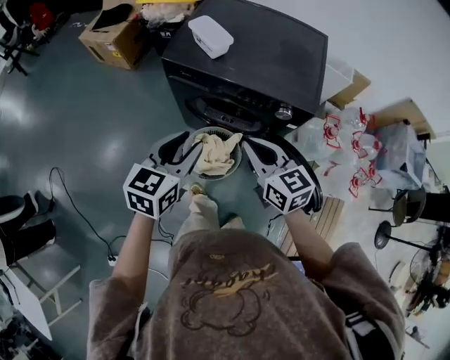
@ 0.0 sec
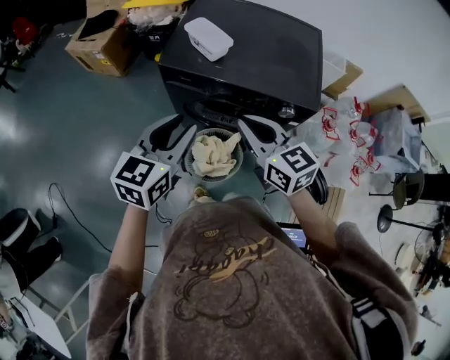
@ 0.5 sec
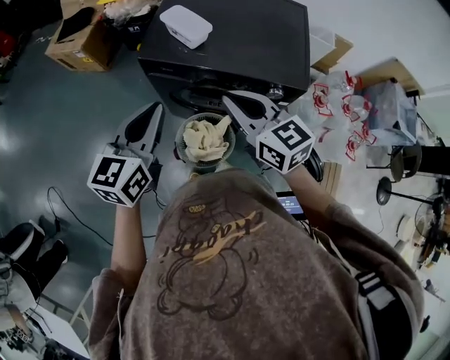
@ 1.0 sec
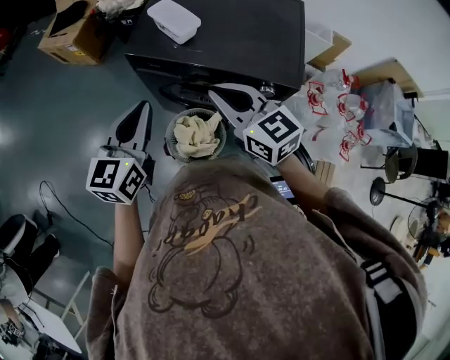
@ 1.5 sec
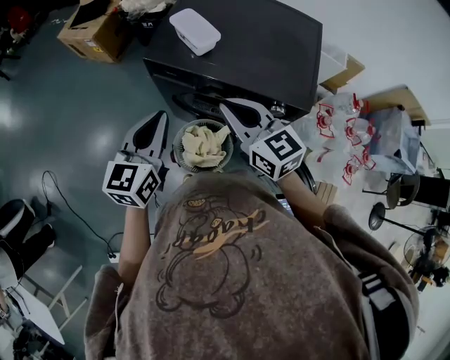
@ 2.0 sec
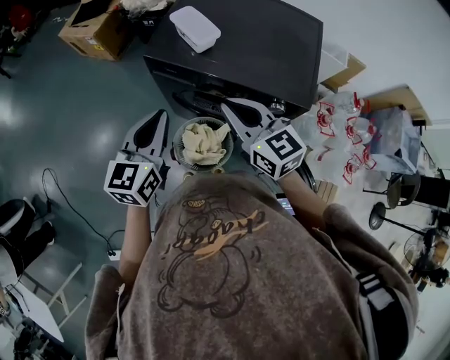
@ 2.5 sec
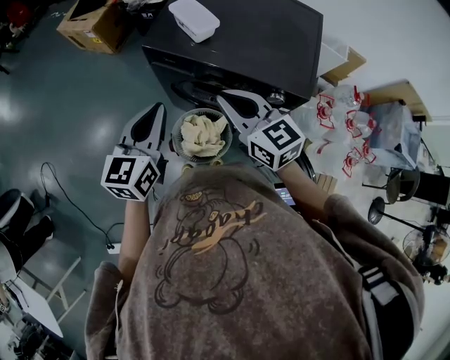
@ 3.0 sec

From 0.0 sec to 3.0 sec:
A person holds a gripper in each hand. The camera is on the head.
From 0.0 sec to 1.5 sec: Both grippers move forward, roughly 10 cm. The left gripper closes.
From 1.5 sec to 3.0 sec: The grippers stay close to where they were, moving slightly.

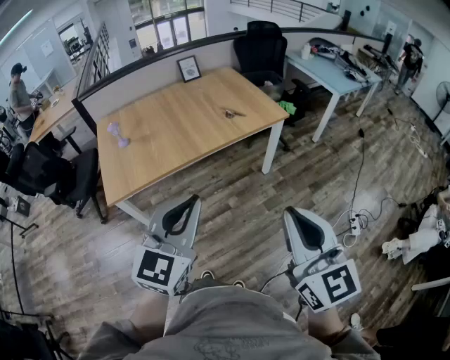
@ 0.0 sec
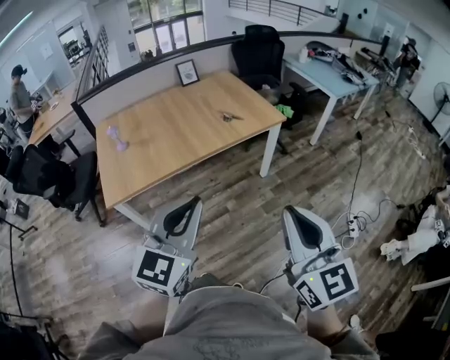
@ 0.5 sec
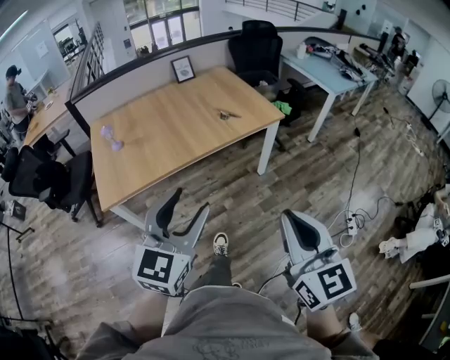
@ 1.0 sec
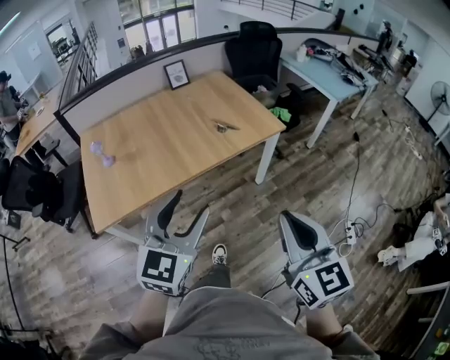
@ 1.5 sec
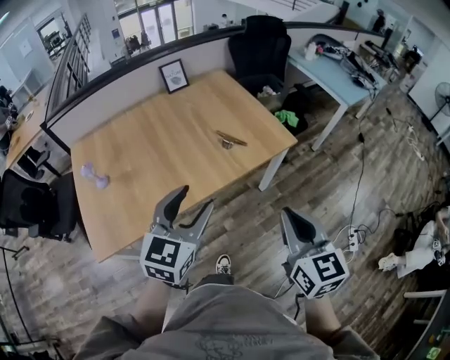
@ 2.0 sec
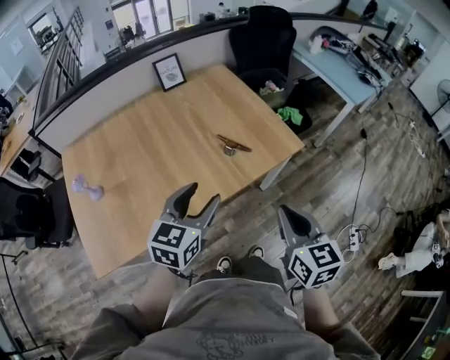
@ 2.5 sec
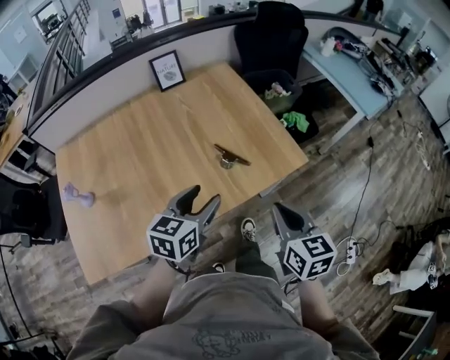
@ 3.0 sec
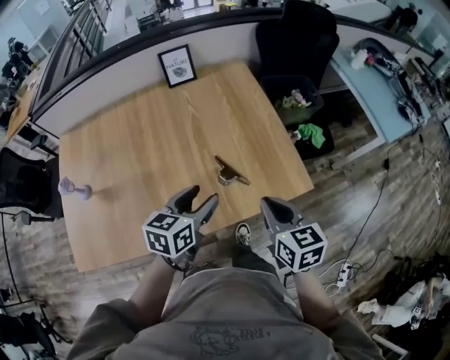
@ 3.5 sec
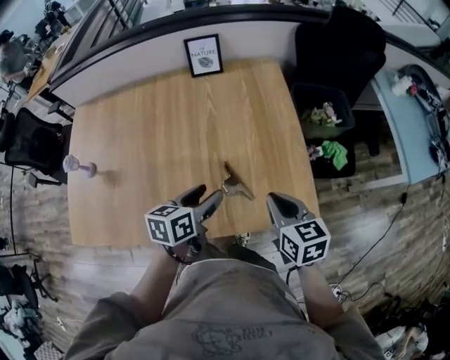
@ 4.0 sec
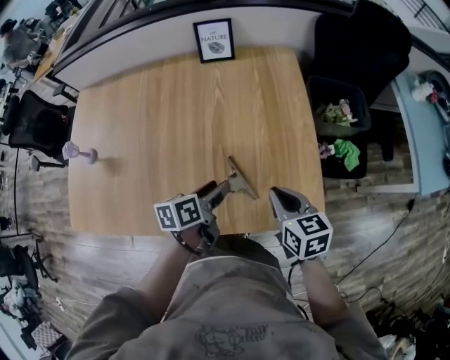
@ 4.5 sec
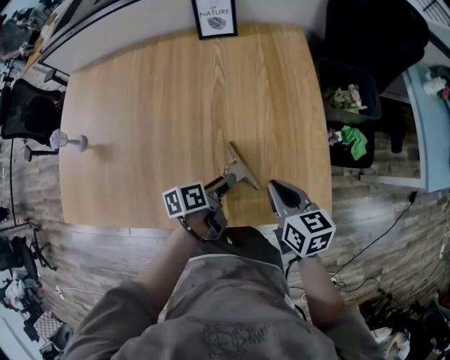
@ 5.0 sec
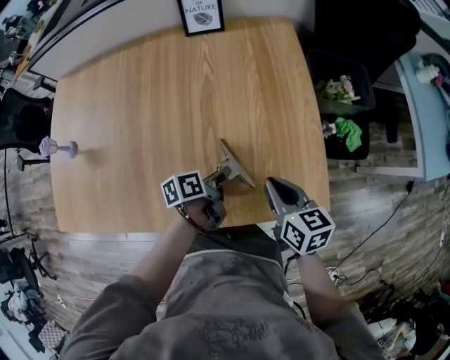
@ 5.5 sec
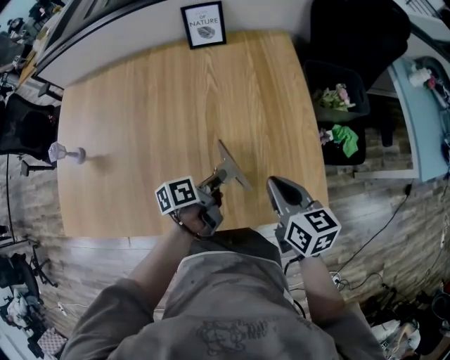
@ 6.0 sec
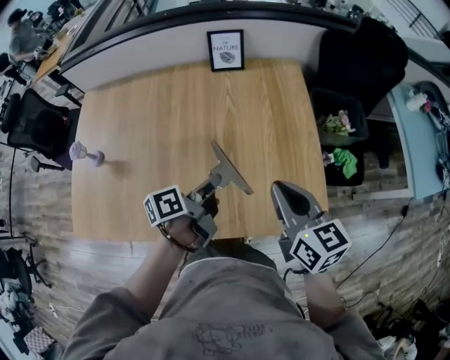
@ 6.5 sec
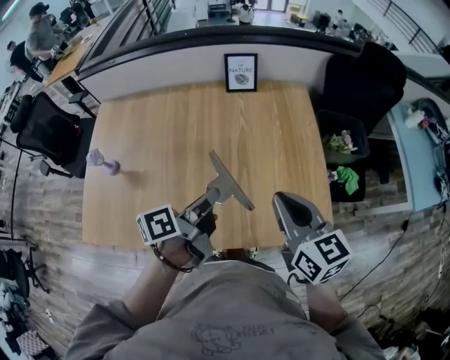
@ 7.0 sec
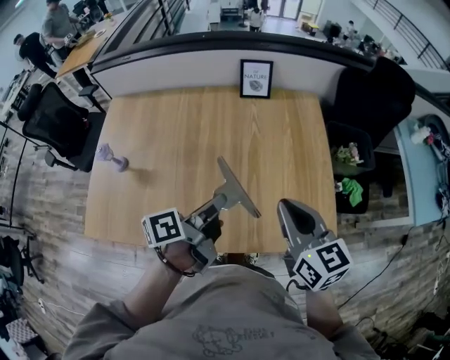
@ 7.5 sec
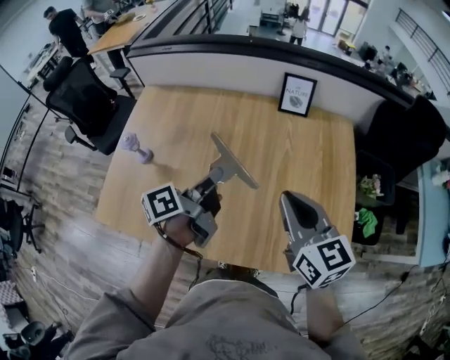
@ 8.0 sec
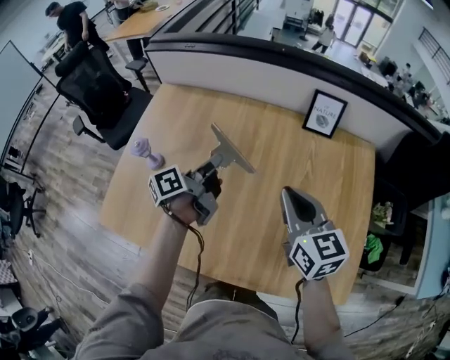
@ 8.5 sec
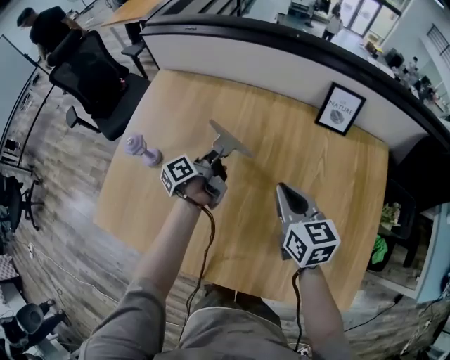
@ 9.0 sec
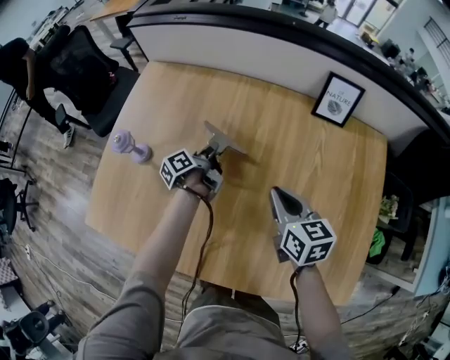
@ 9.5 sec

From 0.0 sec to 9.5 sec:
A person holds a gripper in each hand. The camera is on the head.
From 0.0 sec to 2.0 sec: Both grippers travel together forward, approximately 35 cm. The left gripper opens its fingers.
From 2.0 sec to 4.0 sec: The left gripper ends up some 40 cm from where it was, and rolls counterclockwise, seen from behind, by some 50 degrees. The right gripper ends up roughly 50 cm from where it was, and turns by some 40 degrees.
From 4.0 sec to 5.5 sec: The left gripper travels downward by roughly 20 cm, rotates about 40 degrees, and closes up; the right gripper is displaced downward by roughly 10 cm.
From 5.5 sec to 7.5 sec: The grippers both shift upward and to the left by some 30 cm. The left gripper changes its angle by some 20 degrees, while the right gripper changes its angle by approximately 20 degrees.
From 7.5 sec to 9.5 sec: The two grippers go about 40 cm forward, downward and to the left. The left gripper turns by roughly 30 degrees.

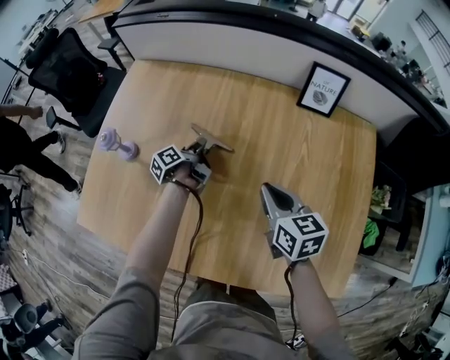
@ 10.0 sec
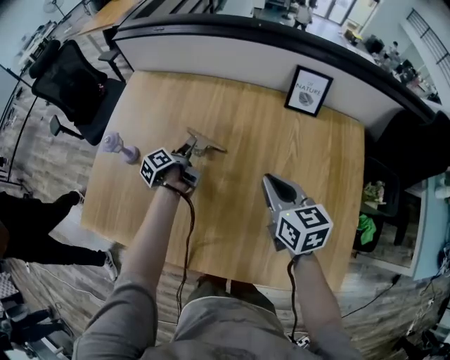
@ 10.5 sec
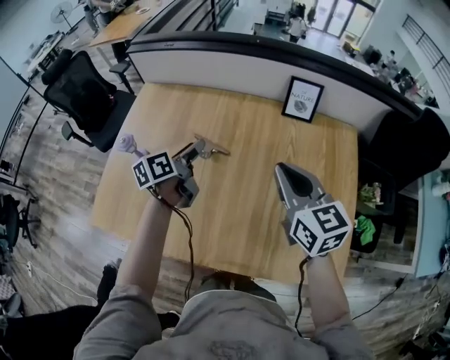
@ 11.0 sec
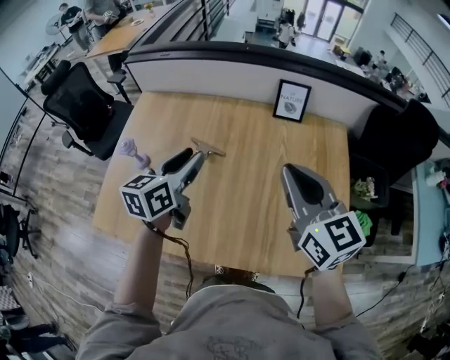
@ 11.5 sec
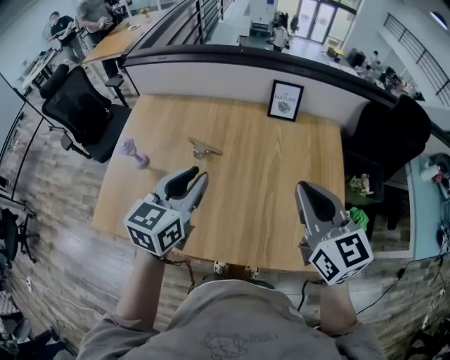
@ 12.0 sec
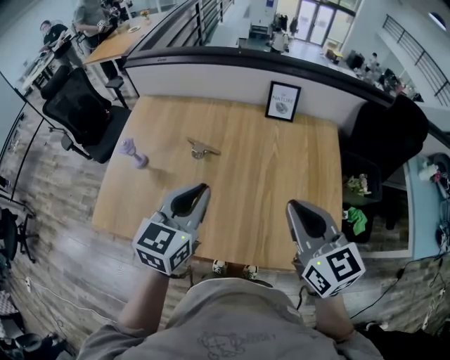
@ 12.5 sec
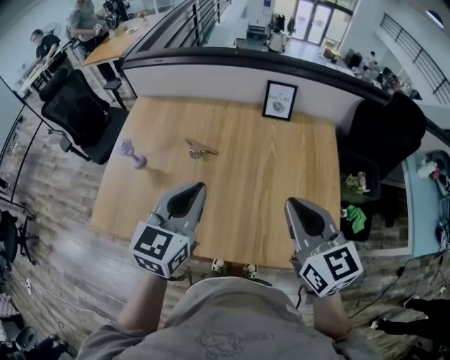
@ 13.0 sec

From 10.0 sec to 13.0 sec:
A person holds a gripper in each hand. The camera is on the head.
From 10.0 sec to 11.5 sec: The grippers both shift upward and backward by approximately 35 cm. The right gripper swivels some 30 degrees. Meanwhile the left gripper twists approximately 60 degrees clockwise, seen from behind, and opens.
From 11.5 sec to 13.0 sec: The right gripper goes approximately 10 cm backward, while the left gripper goes some 15 cm backward and to the right, rotates some 20 degrees, and closes up.

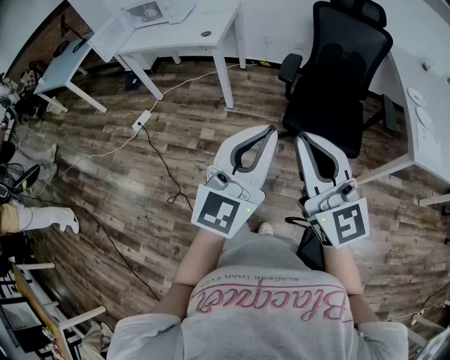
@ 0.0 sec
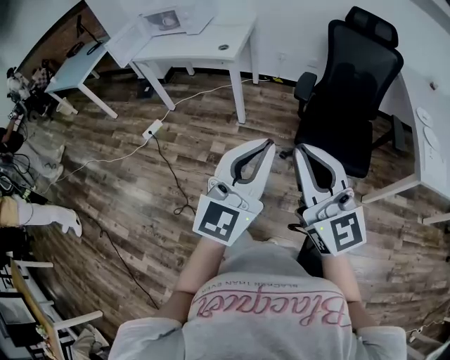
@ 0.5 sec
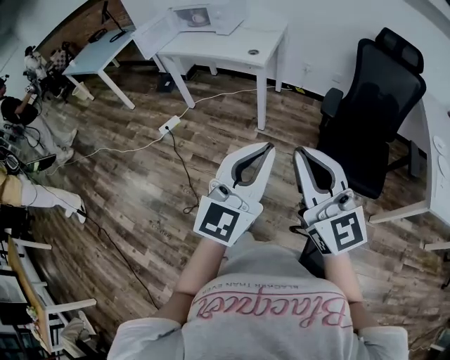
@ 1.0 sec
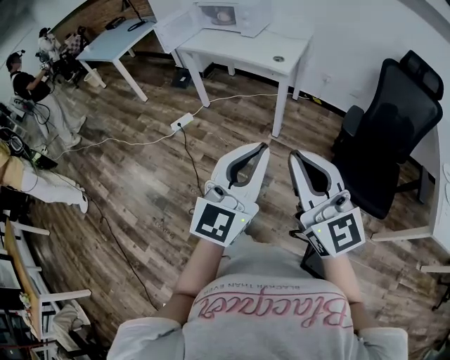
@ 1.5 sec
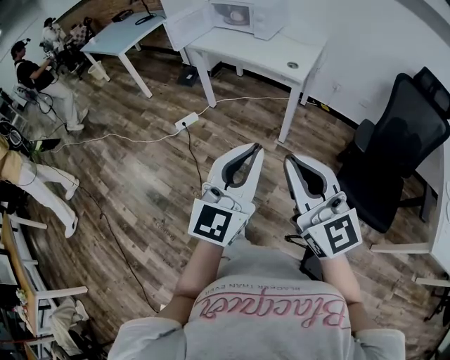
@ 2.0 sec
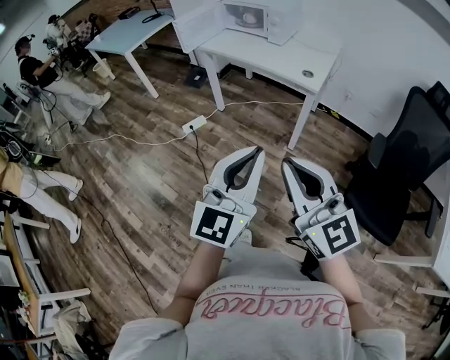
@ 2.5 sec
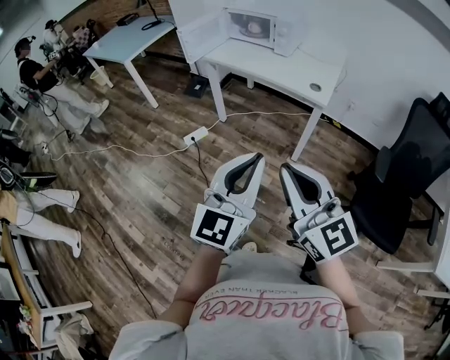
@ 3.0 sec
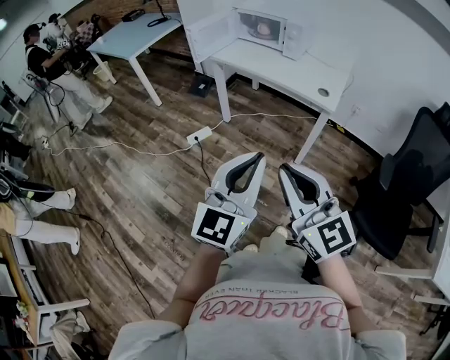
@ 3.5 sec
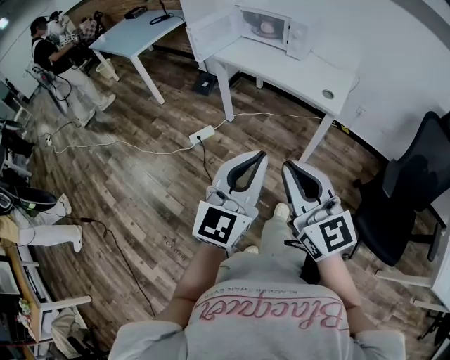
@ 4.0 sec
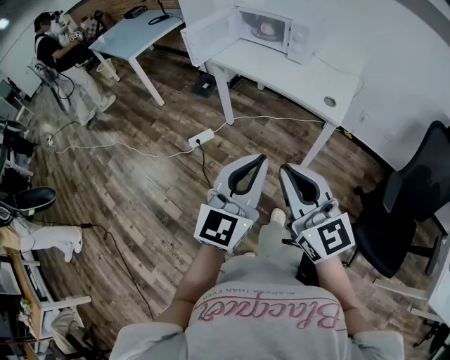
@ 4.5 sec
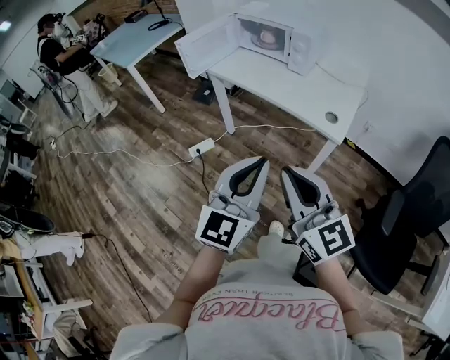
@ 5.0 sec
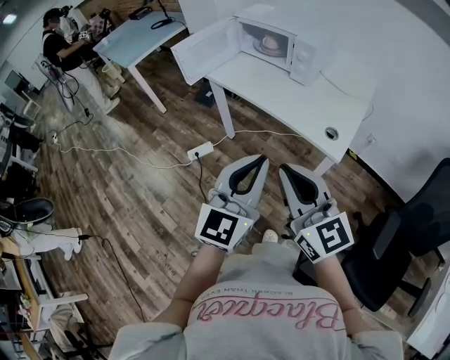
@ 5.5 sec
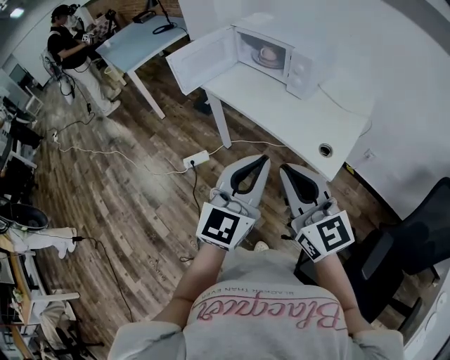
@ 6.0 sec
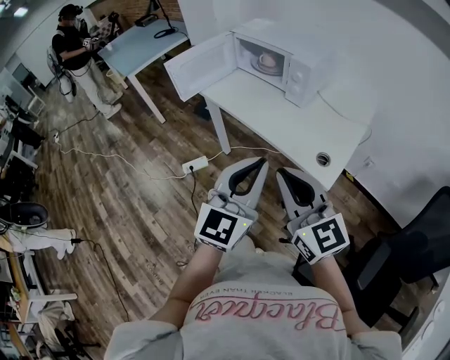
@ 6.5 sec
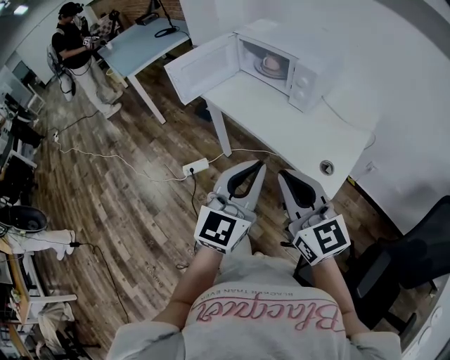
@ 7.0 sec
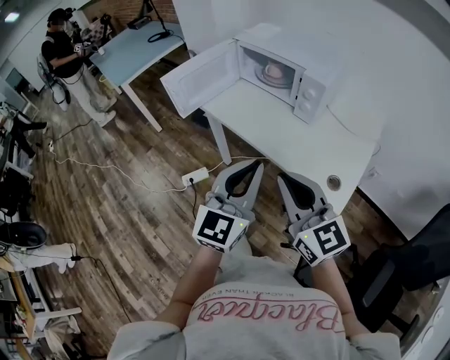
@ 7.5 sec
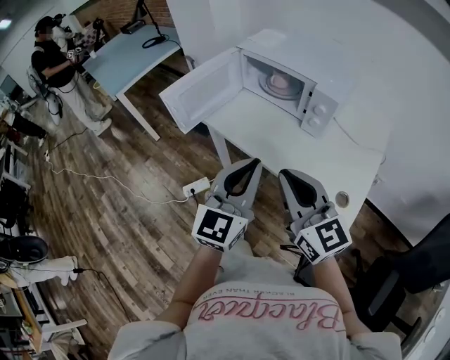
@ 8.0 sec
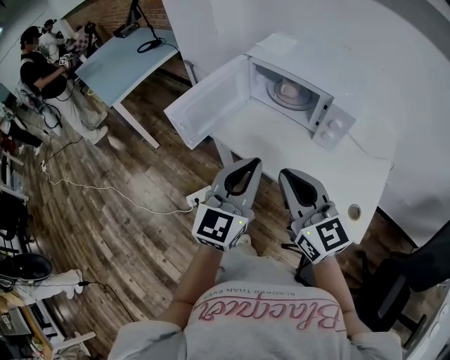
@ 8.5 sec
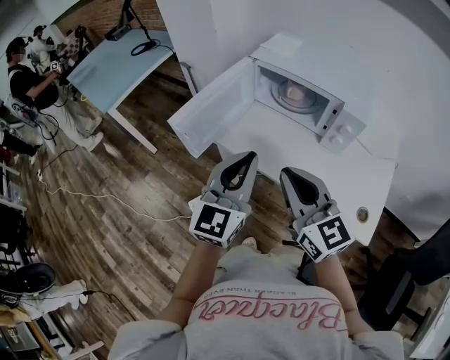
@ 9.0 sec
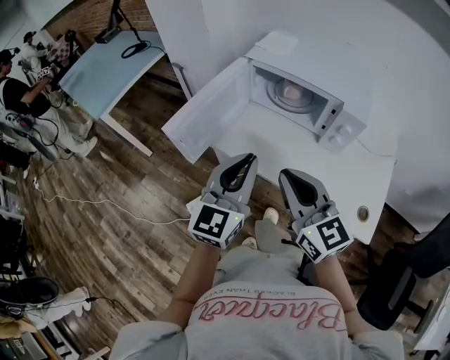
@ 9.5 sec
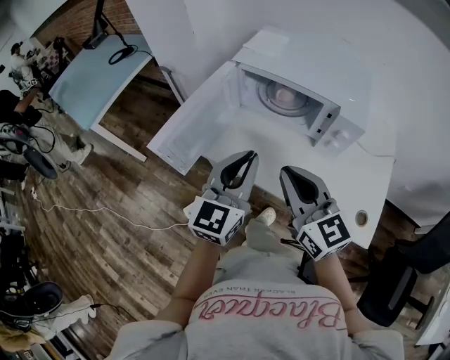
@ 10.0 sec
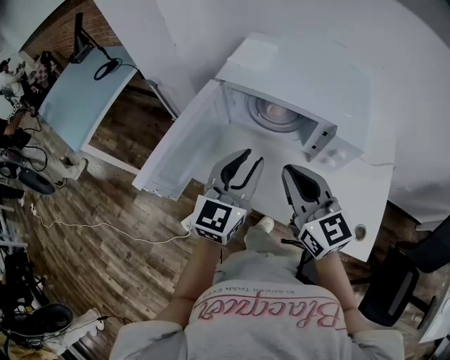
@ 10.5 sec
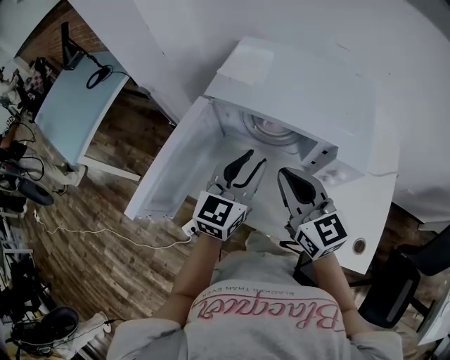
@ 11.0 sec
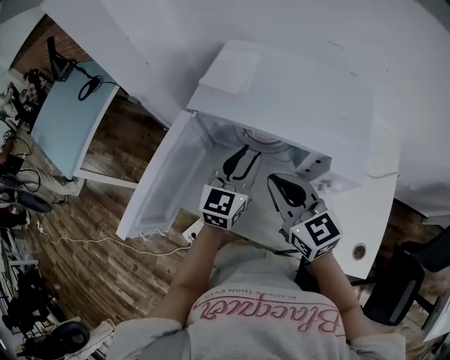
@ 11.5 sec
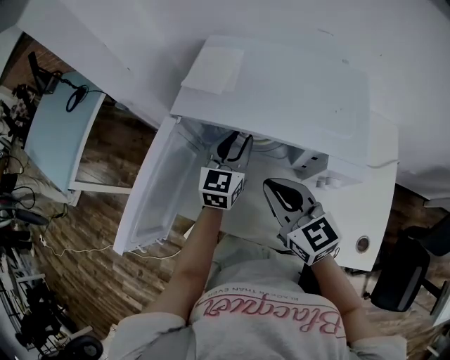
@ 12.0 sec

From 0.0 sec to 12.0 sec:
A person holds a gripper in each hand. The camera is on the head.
From 0.0 sec to 2.0 sec: Both grippers travel together to the left and forward, roughly 30 cm. The left gripper swivels approximately 20 degrees; the right gripper turns by approximately 20 degrees.
From 2.0 sec to 4.0 sec: The two grippers go approximately 20 cm forward and to the left.
From 4.0 sec to 6.0 sec: Both grippers move forward and to the right, about 30 cm.
From 6.0 sec to 8.0 sec: The grippers both shift forward by roughly 20 cm.
From 8.0 sec to 10.0 sec: Both grippers move forward, approximately 20 cm.
From 10.0 sec to 12.0 sec: The right gripper travels forward and downward by some 20 cm. The left gripper travels forward and downward by approximately 30 cm, and opens its fingers.
